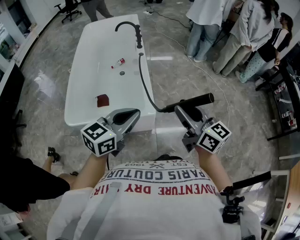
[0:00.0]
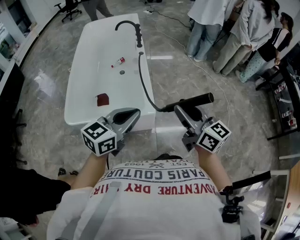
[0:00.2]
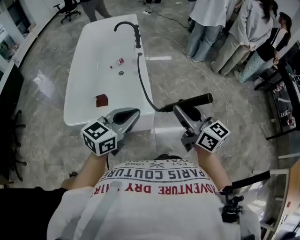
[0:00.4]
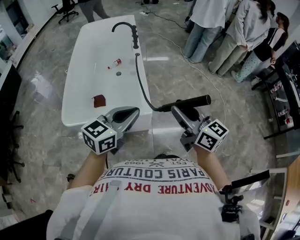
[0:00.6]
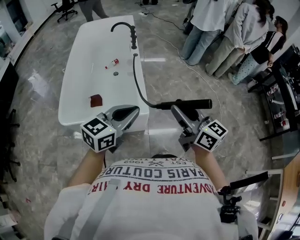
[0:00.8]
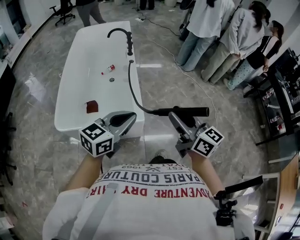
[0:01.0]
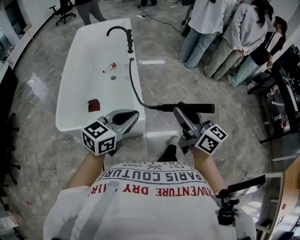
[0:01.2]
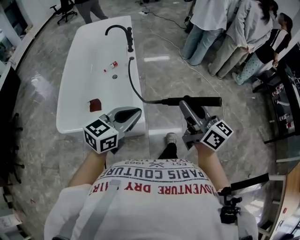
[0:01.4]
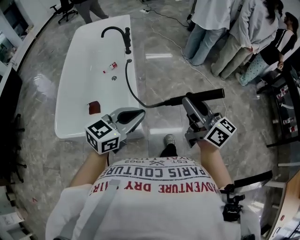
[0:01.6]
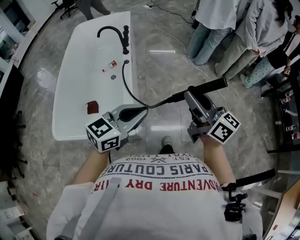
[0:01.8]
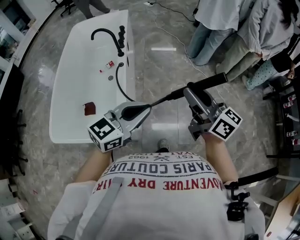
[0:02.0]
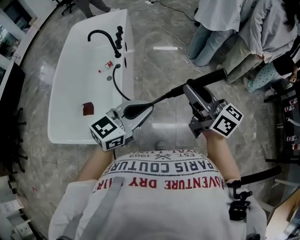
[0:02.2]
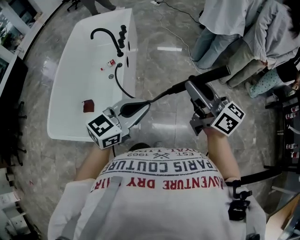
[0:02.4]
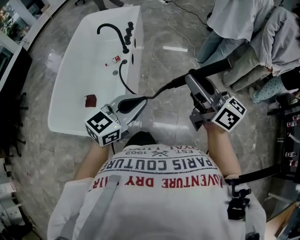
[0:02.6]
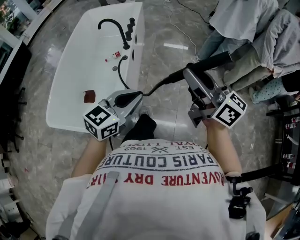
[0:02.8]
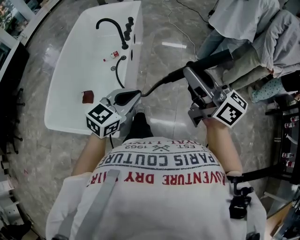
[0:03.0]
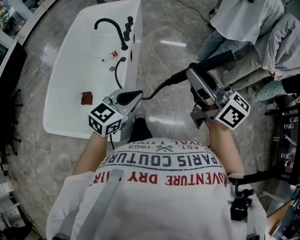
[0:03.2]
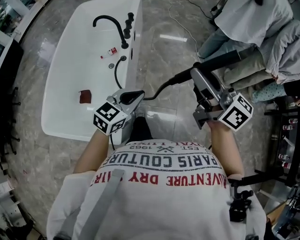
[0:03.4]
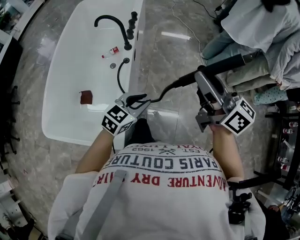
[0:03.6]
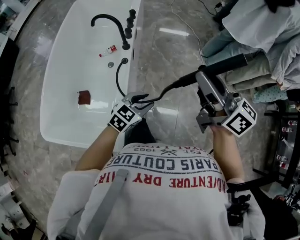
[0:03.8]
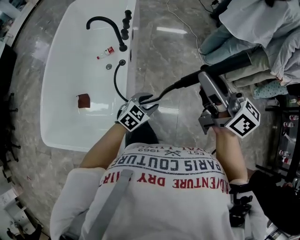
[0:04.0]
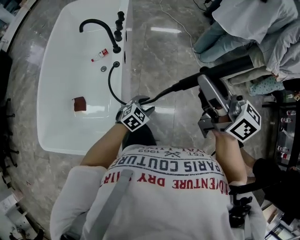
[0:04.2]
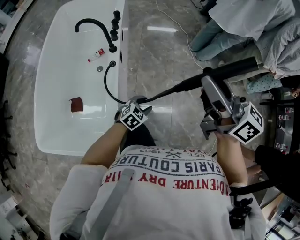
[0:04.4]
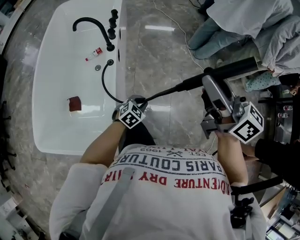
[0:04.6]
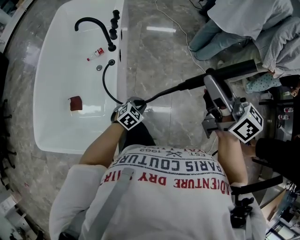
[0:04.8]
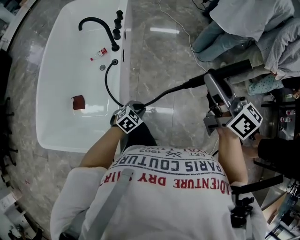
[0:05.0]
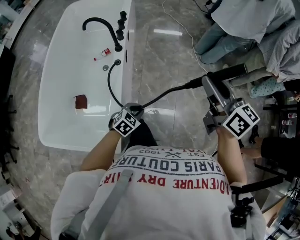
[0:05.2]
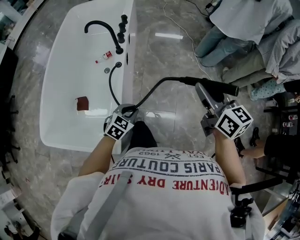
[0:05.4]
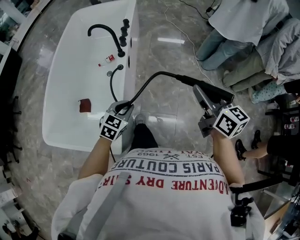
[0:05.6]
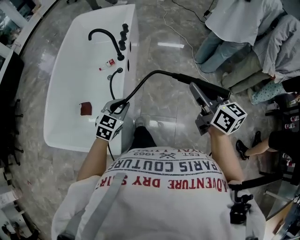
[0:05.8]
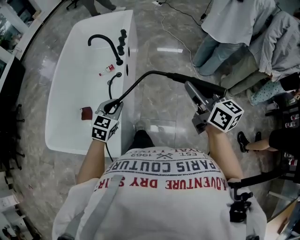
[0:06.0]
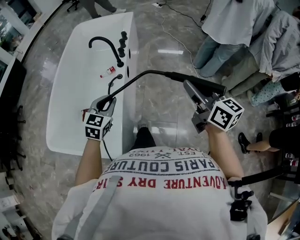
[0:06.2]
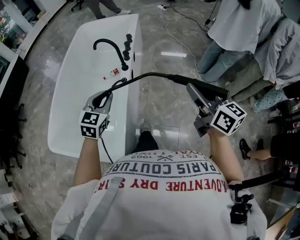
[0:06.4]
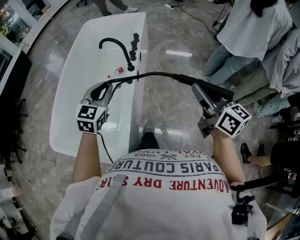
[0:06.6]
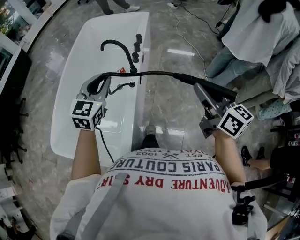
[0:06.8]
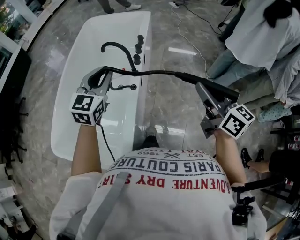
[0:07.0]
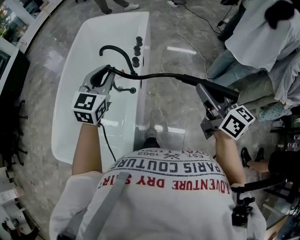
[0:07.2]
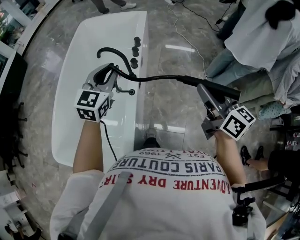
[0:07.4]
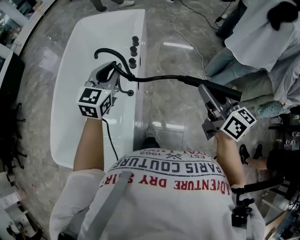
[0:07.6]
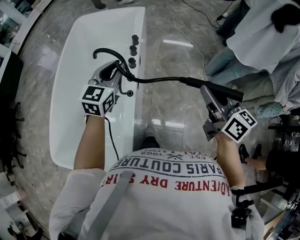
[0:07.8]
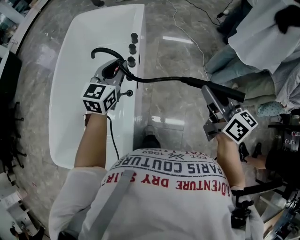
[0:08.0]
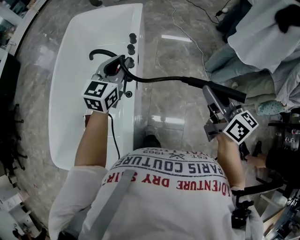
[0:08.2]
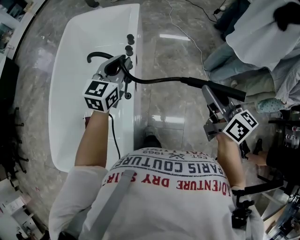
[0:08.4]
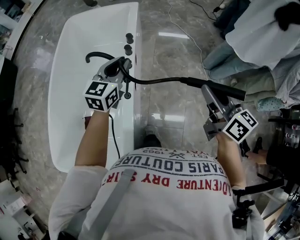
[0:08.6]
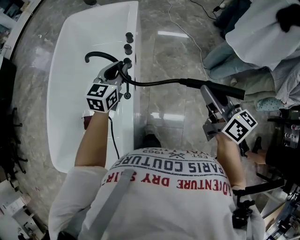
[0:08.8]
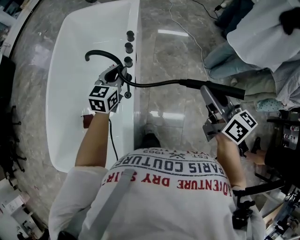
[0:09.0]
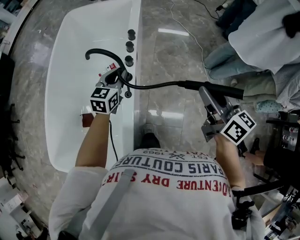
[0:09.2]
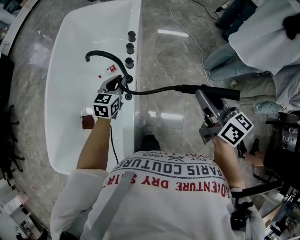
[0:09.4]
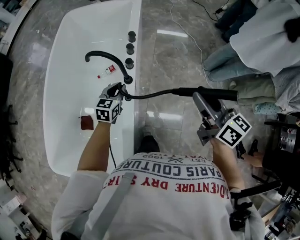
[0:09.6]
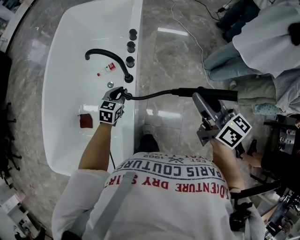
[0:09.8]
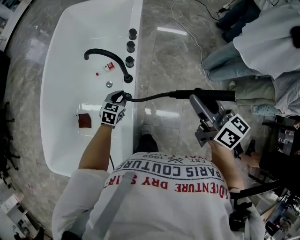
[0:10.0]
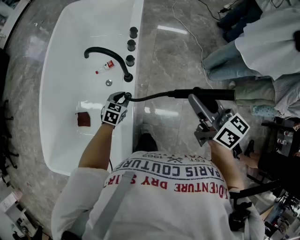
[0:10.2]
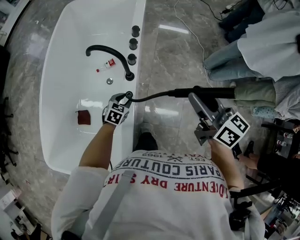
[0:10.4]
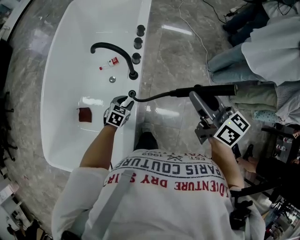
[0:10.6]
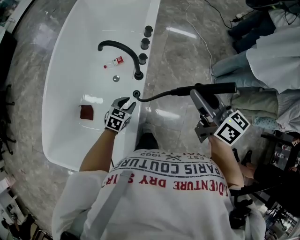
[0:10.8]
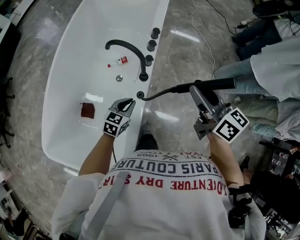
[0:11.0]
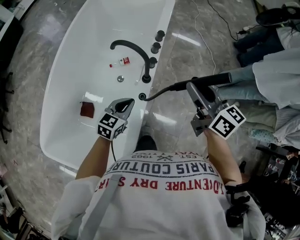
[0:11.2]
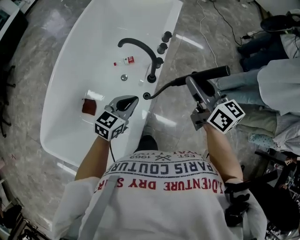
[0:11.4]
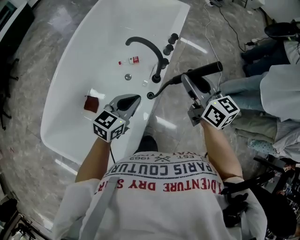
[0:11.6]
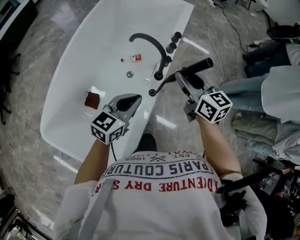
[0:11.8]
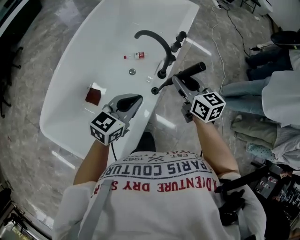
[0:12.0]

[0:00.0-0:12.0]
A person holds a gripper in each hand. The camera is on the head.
0:00.0 to 0:01.6: The two grippers go approximately 15 cm forward and to the right.
0:01.6 to 0:03.0: The two grippers go some 20 cm forward.
0:03.0 to 0:04.4: The left gripper goes approximately 30 cm downward, swivels some 30 degrees, and opens, while the right gripper goes approximately 10 cm forward.
0:04.4 to 0:06.0: The right gripper travels to the right and downward by some 10 cm. The left gripper moves upward and to the left, some 25 cm, swivels some 30 degrees, and closes its fingers.
0:06.0 to 0:07.6: The right gripper goes approximately 20 cm forward, while the left gripper travels forward and upward by some 30 cm.
0:07.6 to 0:09.0: The right gripper changes place by roughly 5 cm; the left gripper goes roughly 15 cm downward and forward.
0:09.0 to 0:10.4: The right gripper heads to the left, covering about 10 cm; the left gripper heads downward and backward, covering roughly 25 cm, and changes its angle by roughly 30 degrees.
0:10.4 to 0:12.0: The left gripper moves upward, approximately 25 cm, tips its fingers upward by about 30 degrees, and closes its fingers, while the right gripper heads to the left, downward and forward, covering some 20 cm, and swivels approximately 20 degrees.

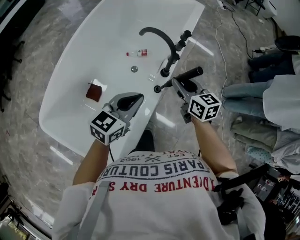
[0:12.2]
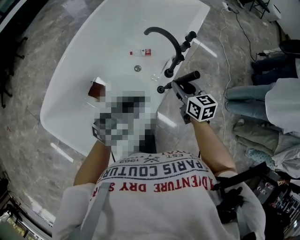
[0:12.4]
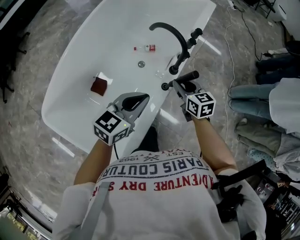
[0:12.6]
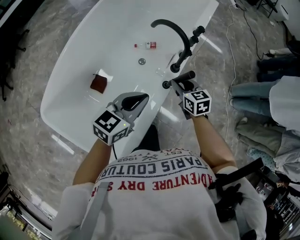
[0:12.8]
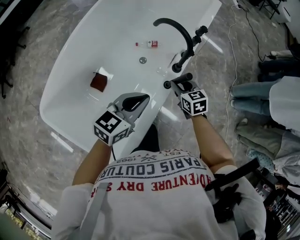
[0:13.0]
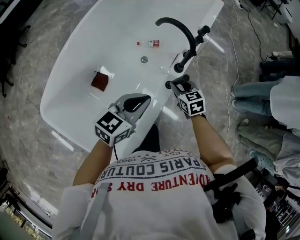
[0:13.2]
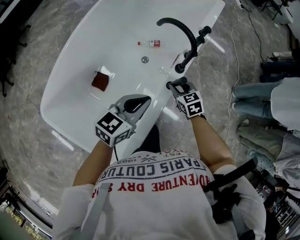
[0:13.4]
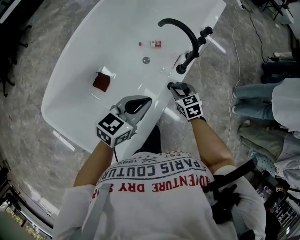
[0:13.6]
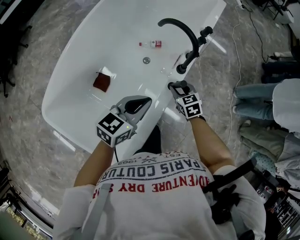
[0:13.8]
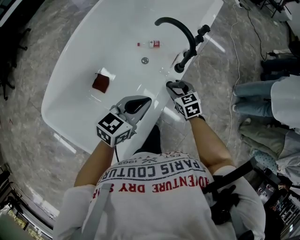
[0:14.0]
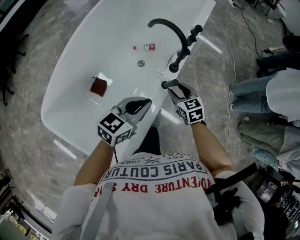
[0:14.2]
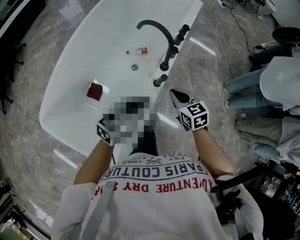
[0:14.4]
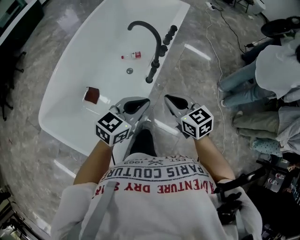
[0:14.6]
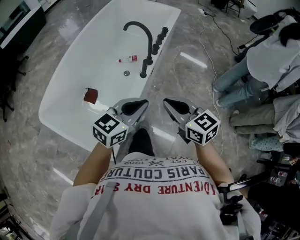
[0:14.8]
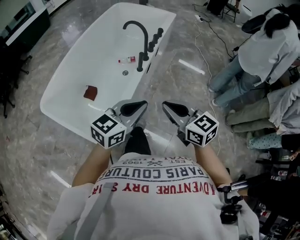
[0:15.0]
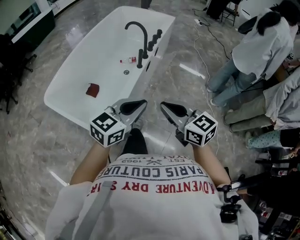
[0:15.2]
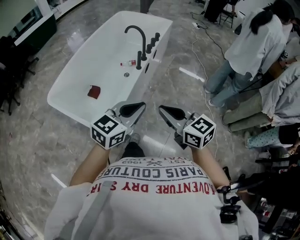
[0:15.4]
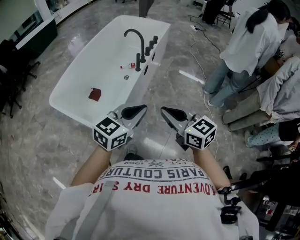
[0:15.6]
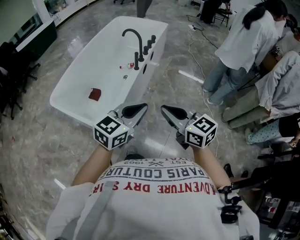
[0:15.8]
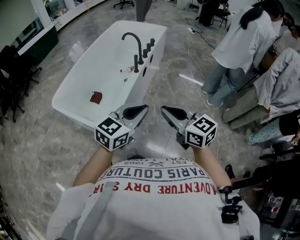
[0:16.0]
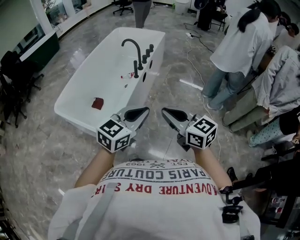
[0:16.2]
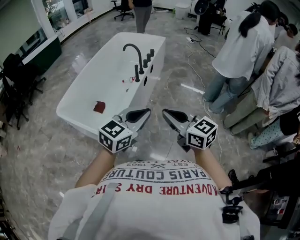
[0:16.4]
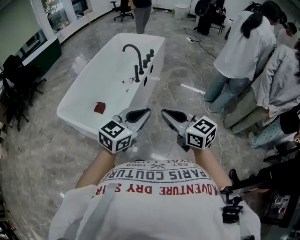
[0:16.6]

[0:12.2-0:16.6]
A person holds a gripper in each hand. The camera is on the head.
0:12.2 to 0:13.6: The left gripper shifts some 5 cm downward, while the right gripper goes about 20 cm downward, and rotates about 30 degrees.
0:13.6 to 0:15.2: The left gripper goes approximately 35 cm backward, upward and to the right; the right gripper moves backward and upward, roughly 50 cm, points its fingers approximately 30 degrees further upward, and closes up.
0:15.2 to 0:16.6: Both grippers travel together backward and upward, approximately 20 cm.

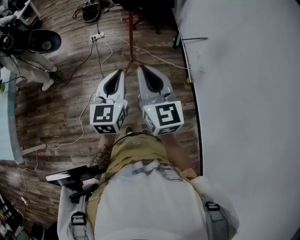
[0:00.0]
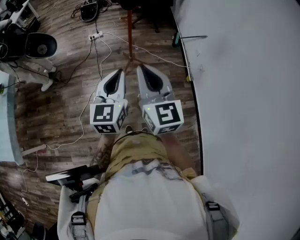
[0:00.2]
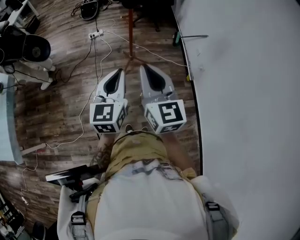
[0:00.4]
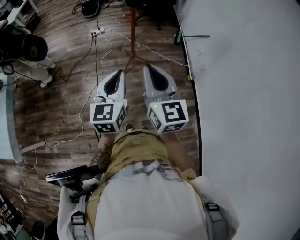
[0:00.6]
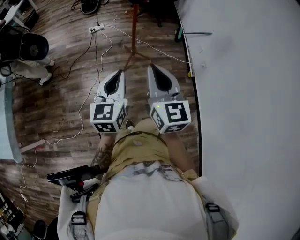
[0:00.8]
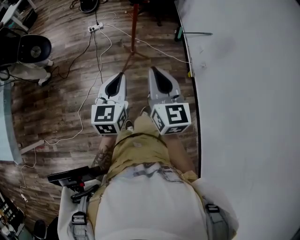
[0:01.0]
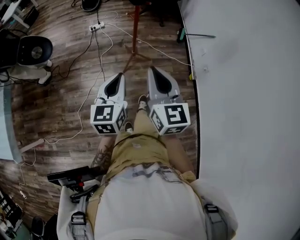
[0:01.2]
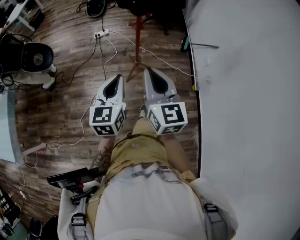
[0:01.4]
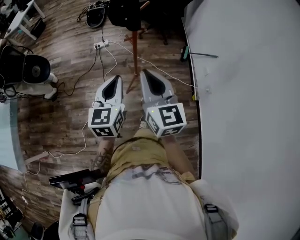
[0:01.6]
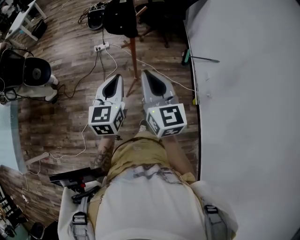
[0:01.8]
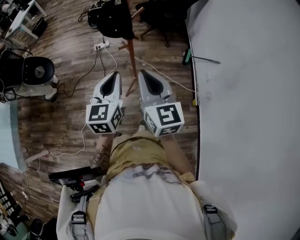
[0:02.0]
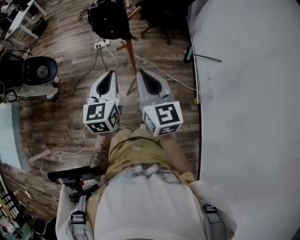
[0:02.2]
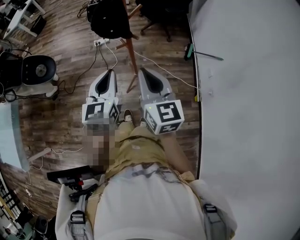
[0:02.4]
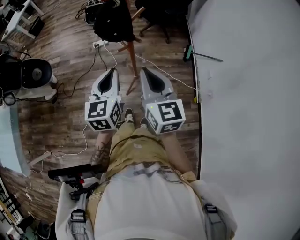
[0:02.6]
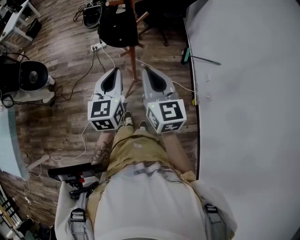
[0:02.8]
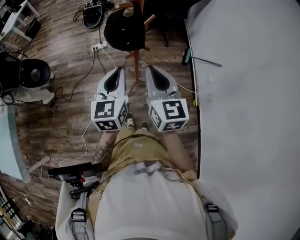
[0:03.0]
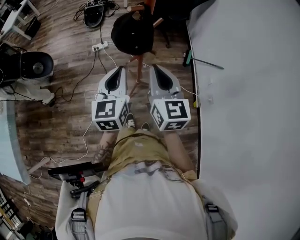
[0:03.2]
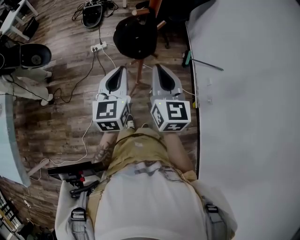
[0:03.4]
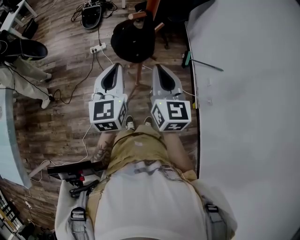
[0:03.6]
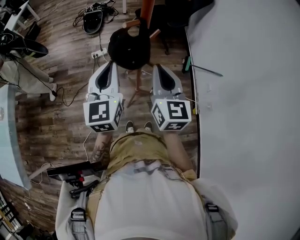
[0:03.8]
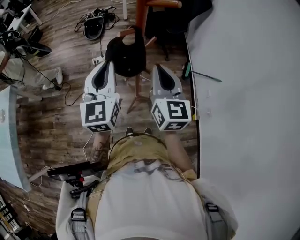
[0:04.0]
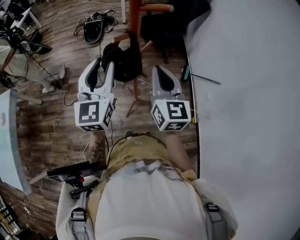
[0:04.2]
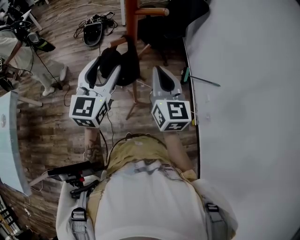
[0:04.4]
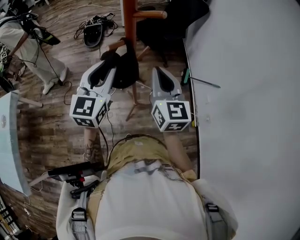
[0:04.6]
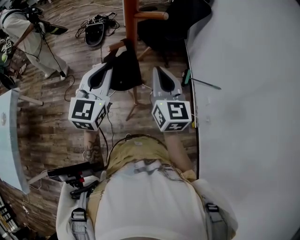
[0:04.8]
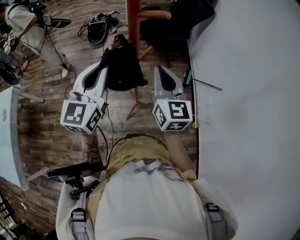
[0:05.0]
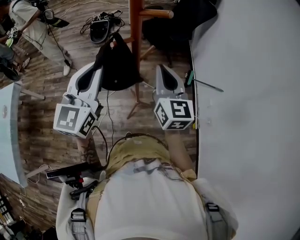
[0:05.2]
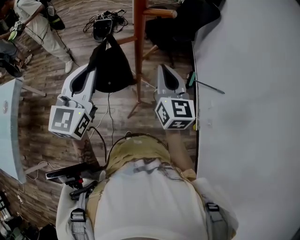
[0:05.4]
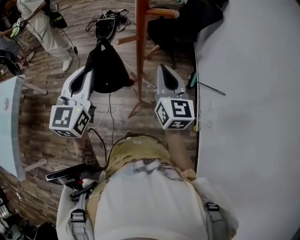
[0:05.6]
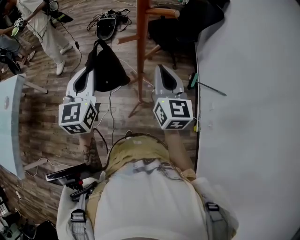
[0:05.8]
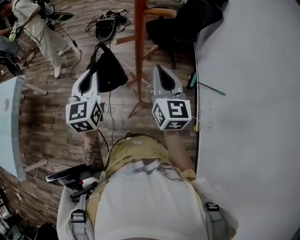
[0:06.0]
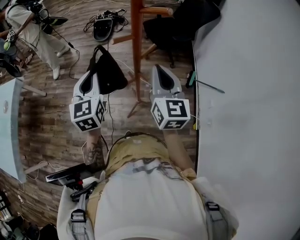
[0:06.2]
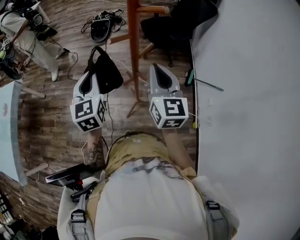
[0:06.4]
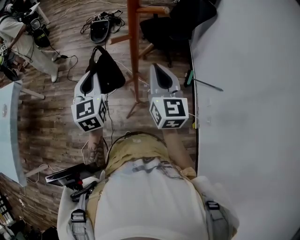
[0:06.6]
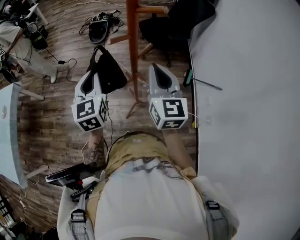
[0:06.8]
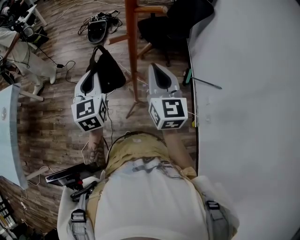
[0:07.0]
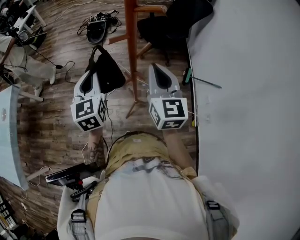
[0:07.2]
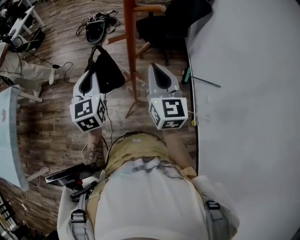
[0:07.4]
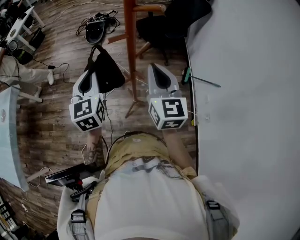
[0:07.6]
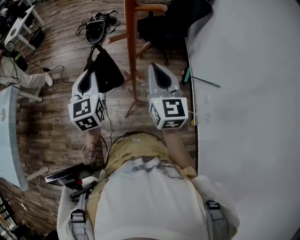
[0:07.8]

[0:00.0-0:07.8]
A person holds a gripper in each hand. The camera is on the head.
0:00.0 to 0:01.6: The grippers both shift forward by approximately 20 cm.
0:01.6 to 0:03.2: The grippers both shift forward by about 20 cm.
0:03.2 to 0:04.6: The right gripper shifts roughly 10 cm forward and to the right. The left gripper heads forward and upward, covering approximately 15 cm, and opens.
0:04.6 to 0:06.2: The left gripper heads to the left, covering some 10 cm, rotates approximately 30 degrees, and closes its fingers.
0:06.2 to 0:07.8: The grippers stay close to where they were, moving slightly.
